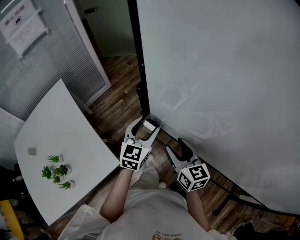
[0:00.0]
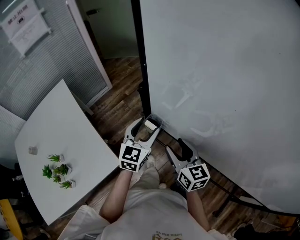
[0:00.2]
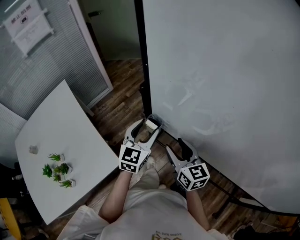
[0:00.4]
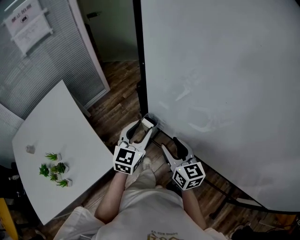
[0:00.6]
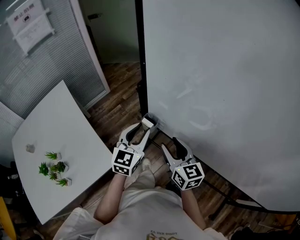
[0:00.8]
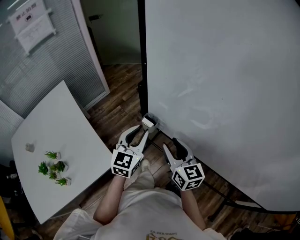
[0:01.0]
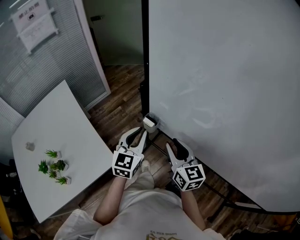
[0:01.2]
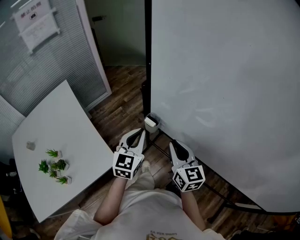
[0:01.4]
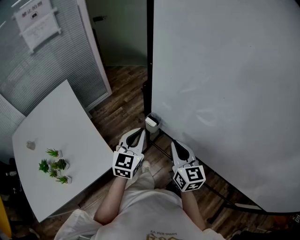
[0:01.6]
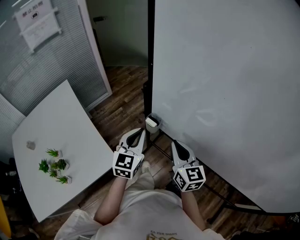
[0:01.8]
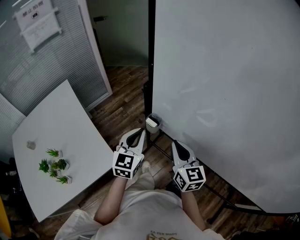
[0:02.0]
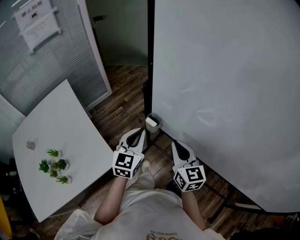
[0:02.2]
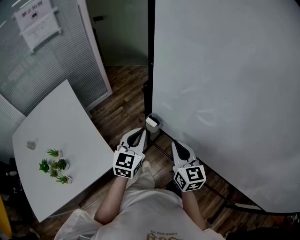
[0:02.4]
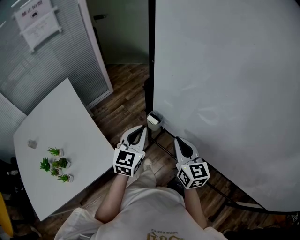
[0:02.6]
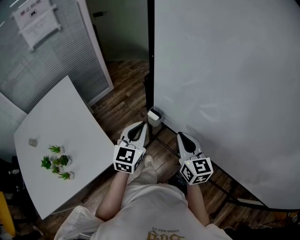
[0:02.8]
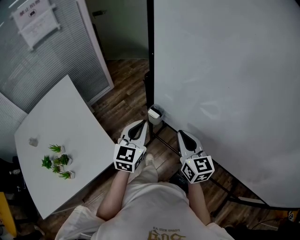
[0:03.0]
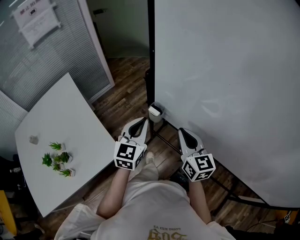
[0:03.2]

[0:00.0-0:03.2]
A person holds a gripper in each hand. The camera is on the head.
0:00.0 to 0:01.6: The left gripper heads backward, covering about 5 cm, and closes; the right gripper changes place by approximately 5 cm, and closes up.
0:01.6 to 0:03.2: The two grippers keep their place.

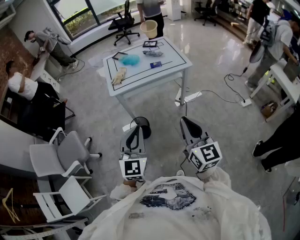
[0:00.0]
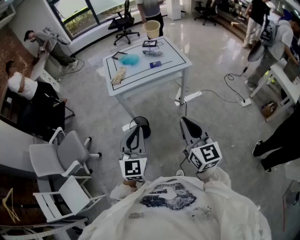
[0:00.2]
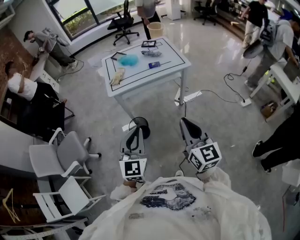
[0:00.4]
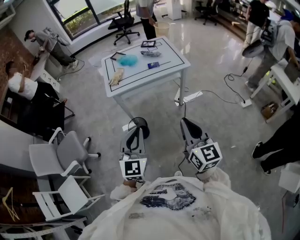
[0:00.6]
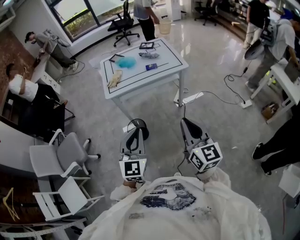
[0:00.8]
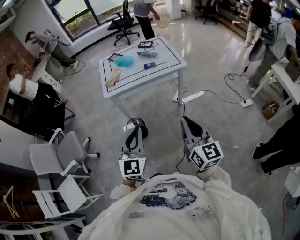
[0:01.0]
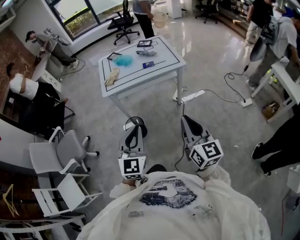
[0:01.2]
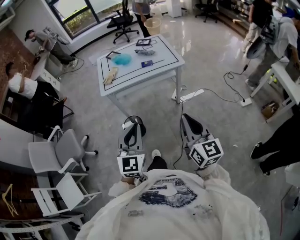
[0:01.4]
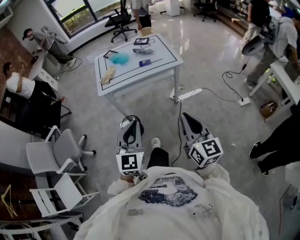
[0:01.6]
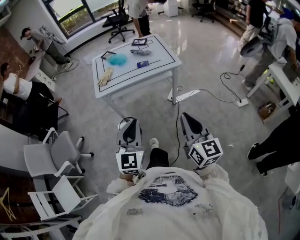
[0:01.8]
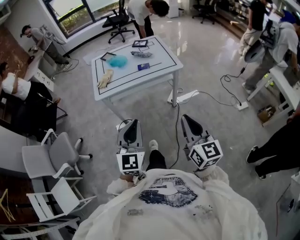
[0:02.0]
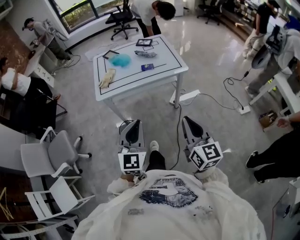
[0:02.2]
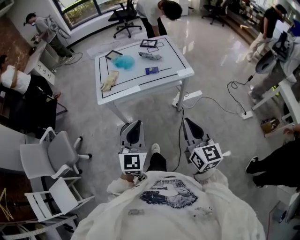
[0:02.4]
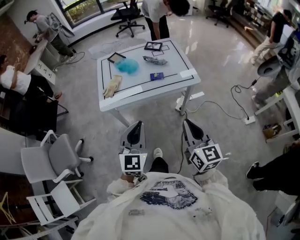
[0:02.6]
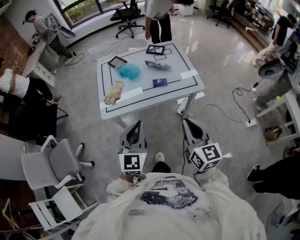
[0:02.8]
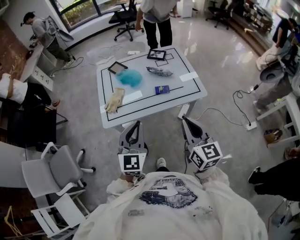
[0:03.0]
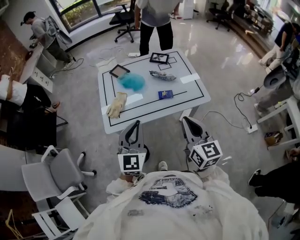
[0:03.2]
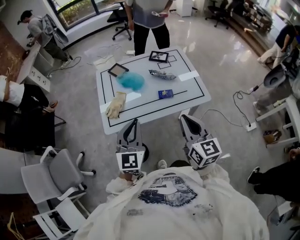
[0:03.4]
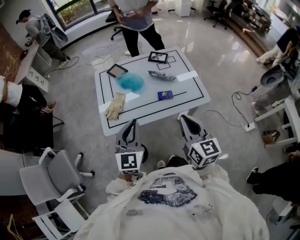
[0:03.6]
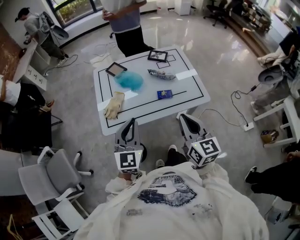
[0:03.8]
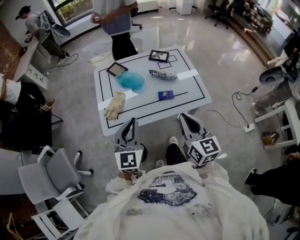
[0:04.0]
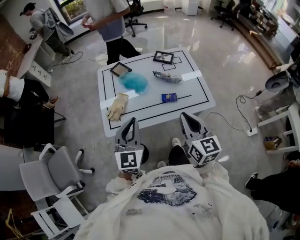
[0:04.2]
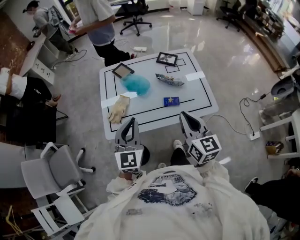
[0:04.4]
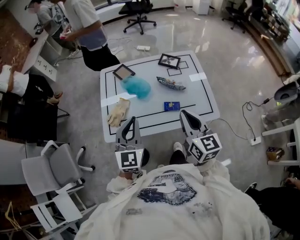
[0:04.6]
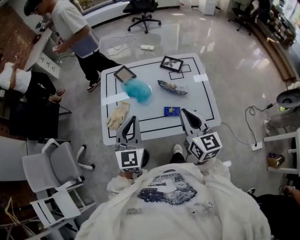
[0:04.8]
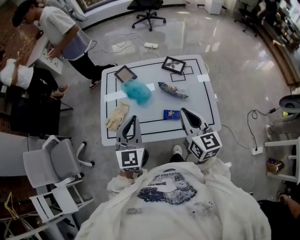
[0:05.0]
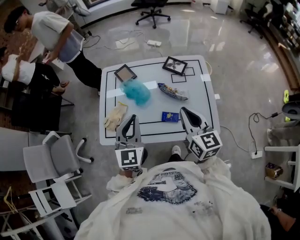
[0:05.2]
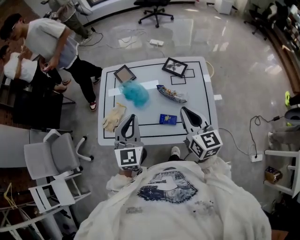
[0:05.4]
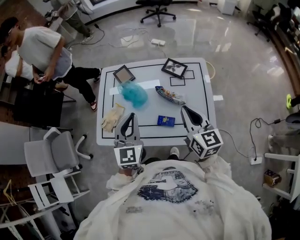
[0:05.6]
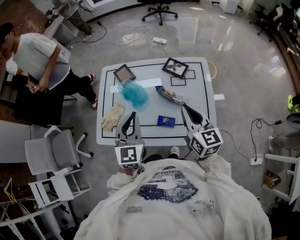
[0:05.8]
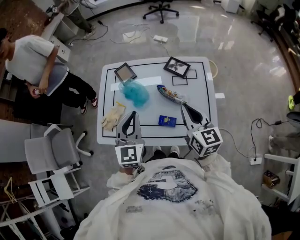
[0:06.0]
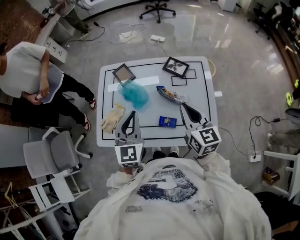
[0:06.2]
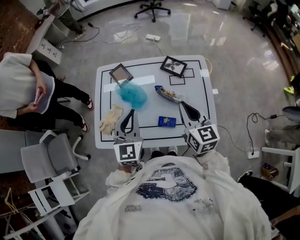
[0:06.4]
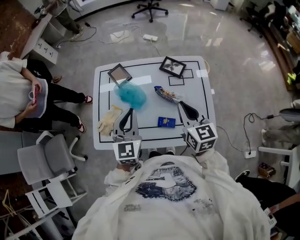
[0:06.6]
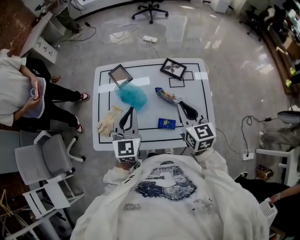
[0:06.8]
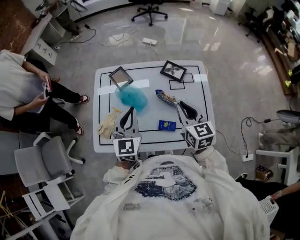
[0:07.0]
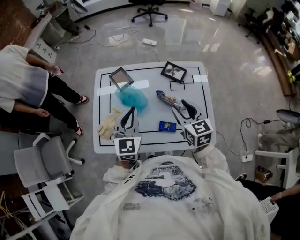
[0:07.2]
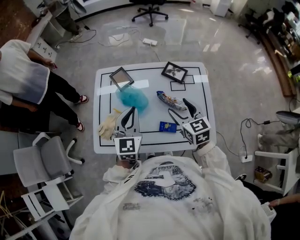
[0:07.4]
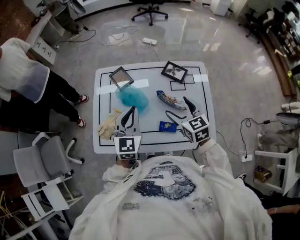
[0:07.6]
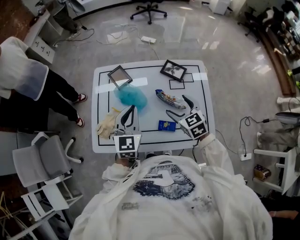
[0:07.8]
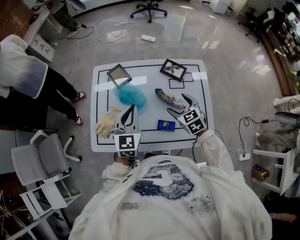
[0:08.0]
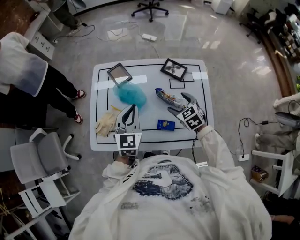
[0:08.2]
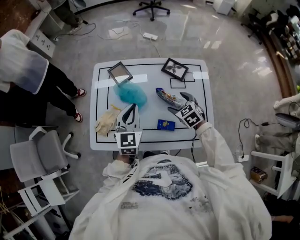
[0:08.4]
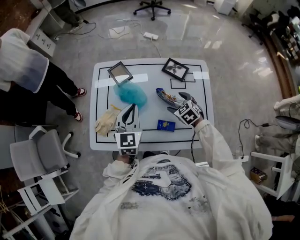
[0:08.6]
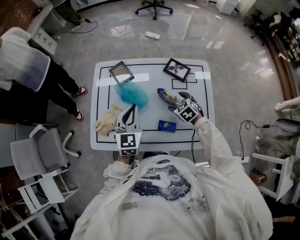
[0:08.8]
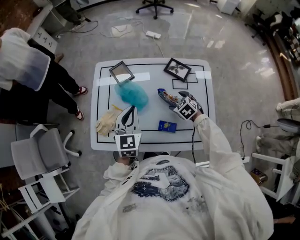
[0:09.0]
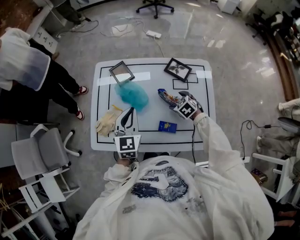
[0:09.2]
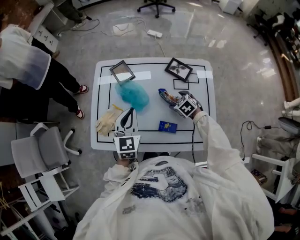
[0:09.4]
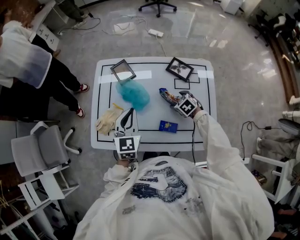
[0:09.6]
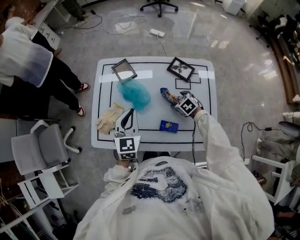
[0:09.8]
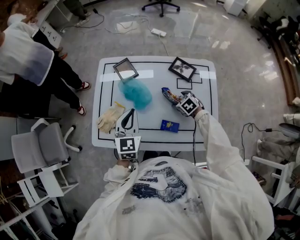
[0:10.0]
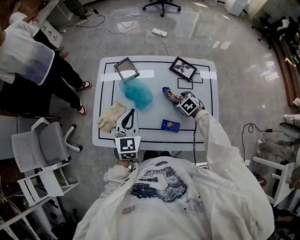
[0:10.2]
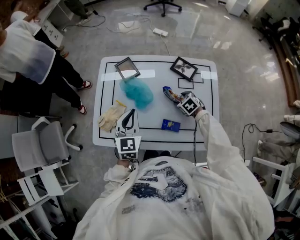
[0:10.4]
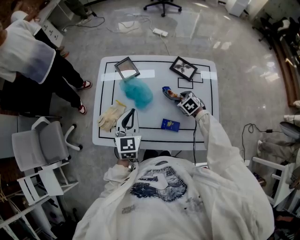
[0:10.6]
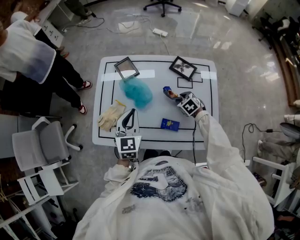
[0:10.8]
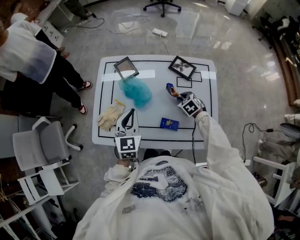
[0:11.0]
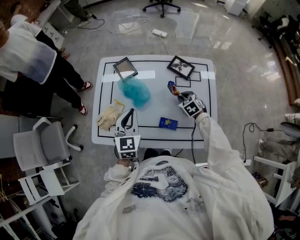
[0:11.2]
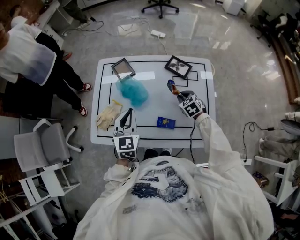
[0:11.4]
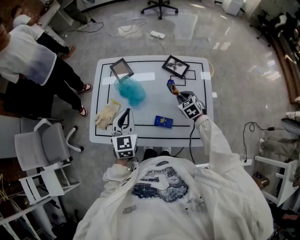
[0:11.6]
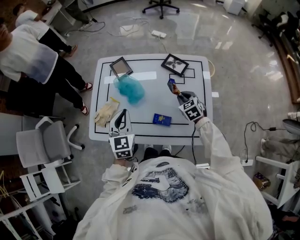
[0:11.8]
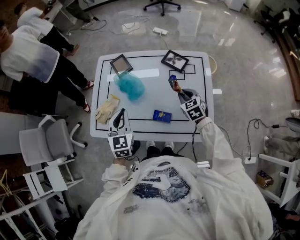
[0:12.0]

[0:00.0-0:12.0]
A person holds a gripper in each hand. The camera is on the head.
0:00.0 to 0:01.6: The two grippers go approximately 10 cm to the right.
0:01.6 to 0:03.0: Both grippers travel together forward, roughly 35 cm.
0:03.0 to 0:04.4: The two grippers go about 15 cm forward.
0:04.4 to 0:06.0: The two grippers go approximately 20 cm forward and to the right.
0:06.0 to 0:07.6: The left gripper heads forward, covering some 5 cm. The right gripper moves downward, forward and to the left, approximately 10 cm, swivels about 20 degrees, and opens its fingers.
0:07.6 to 0:09.0: The right gripper is displaced downward by about 20 cm, and angles its fingers downward, by approximately 30 degrees.
0:09.0 to 0:10.4: There are only small adjustments of the grippers.
0:10.4 to 0:12.0: The left gripper moves backward, some 5 cm; the right gripper travels upward by roughly 10 cm, turns by roughly 30 degrees, and closes up.

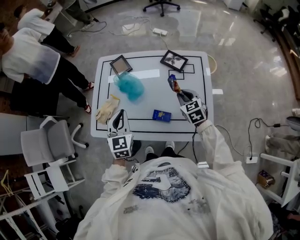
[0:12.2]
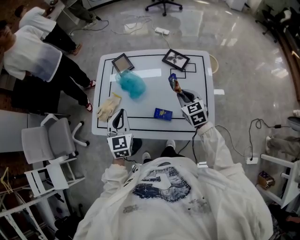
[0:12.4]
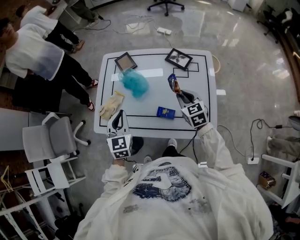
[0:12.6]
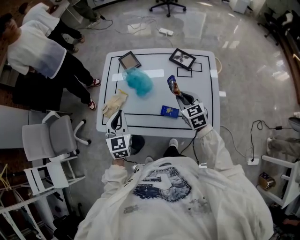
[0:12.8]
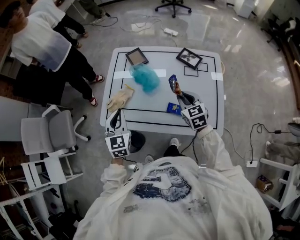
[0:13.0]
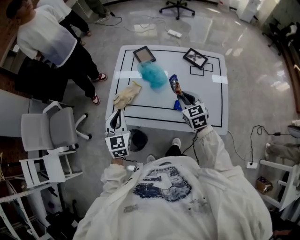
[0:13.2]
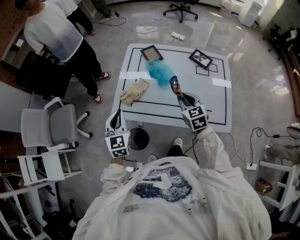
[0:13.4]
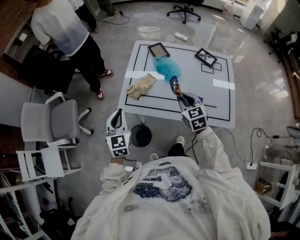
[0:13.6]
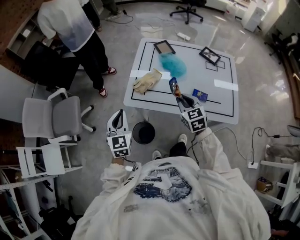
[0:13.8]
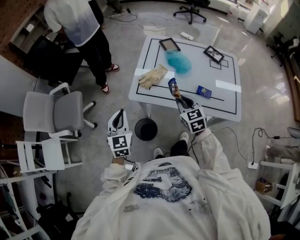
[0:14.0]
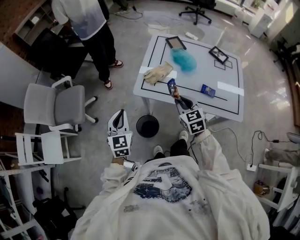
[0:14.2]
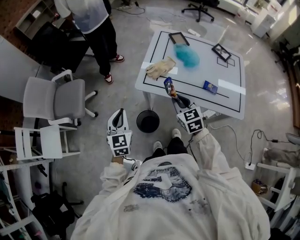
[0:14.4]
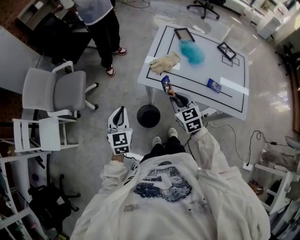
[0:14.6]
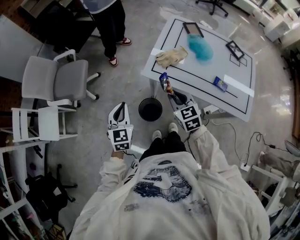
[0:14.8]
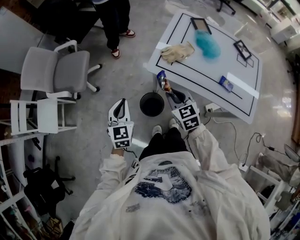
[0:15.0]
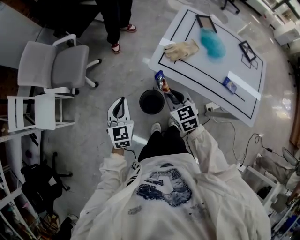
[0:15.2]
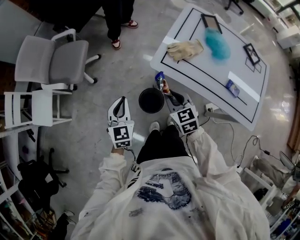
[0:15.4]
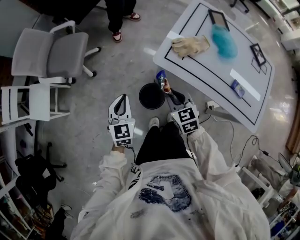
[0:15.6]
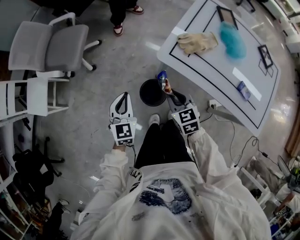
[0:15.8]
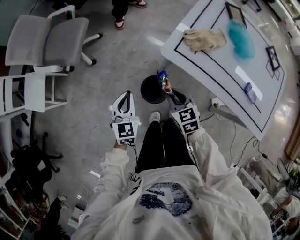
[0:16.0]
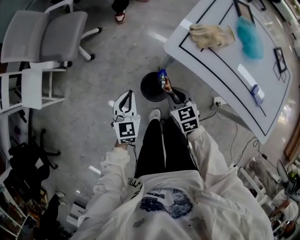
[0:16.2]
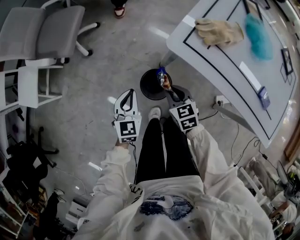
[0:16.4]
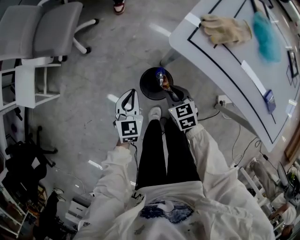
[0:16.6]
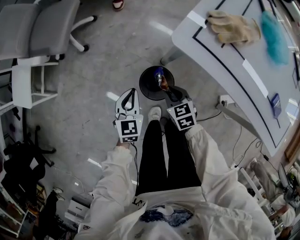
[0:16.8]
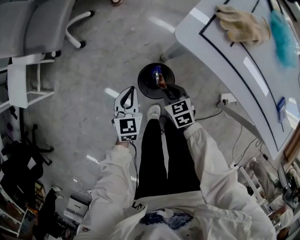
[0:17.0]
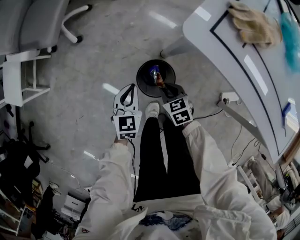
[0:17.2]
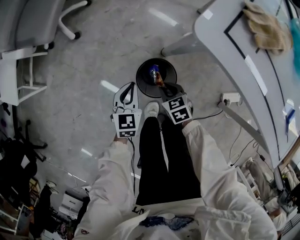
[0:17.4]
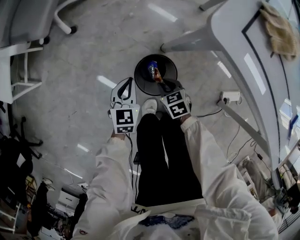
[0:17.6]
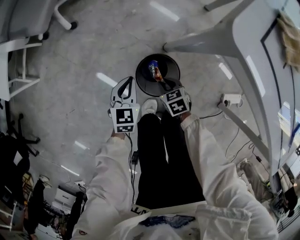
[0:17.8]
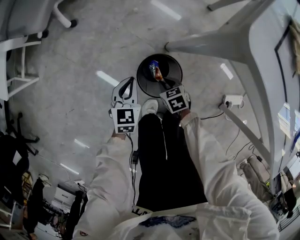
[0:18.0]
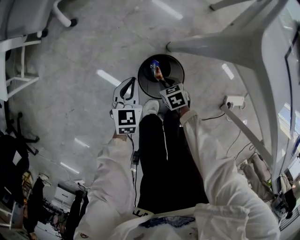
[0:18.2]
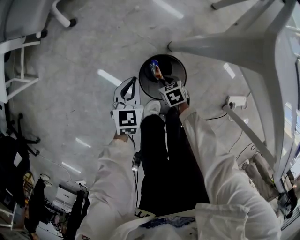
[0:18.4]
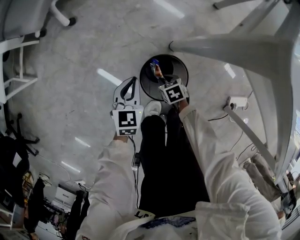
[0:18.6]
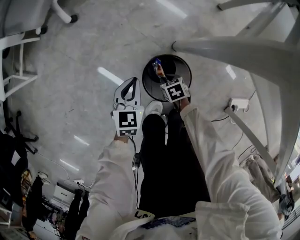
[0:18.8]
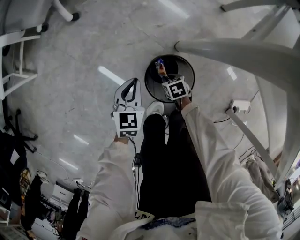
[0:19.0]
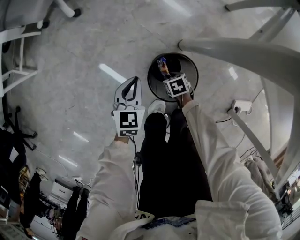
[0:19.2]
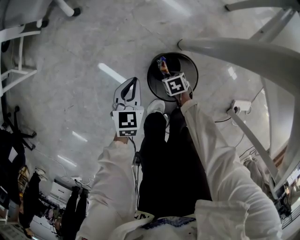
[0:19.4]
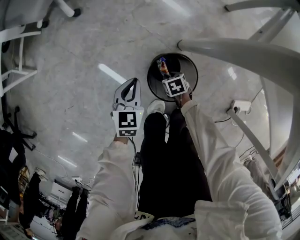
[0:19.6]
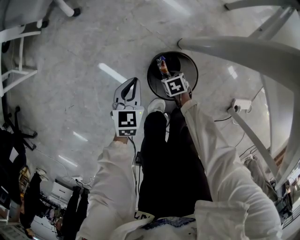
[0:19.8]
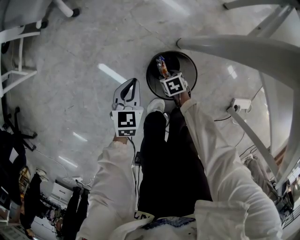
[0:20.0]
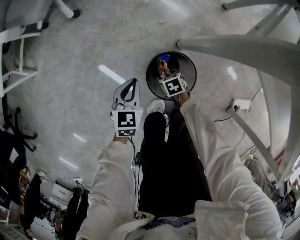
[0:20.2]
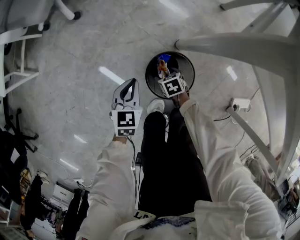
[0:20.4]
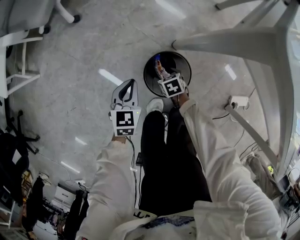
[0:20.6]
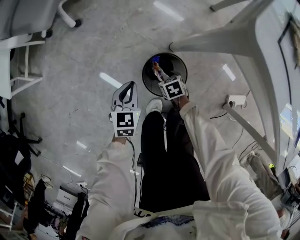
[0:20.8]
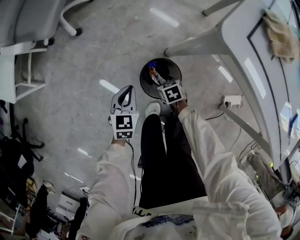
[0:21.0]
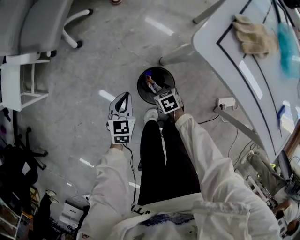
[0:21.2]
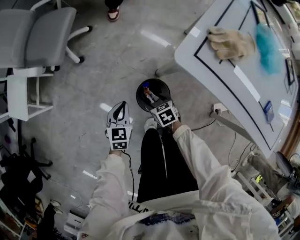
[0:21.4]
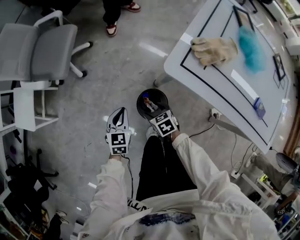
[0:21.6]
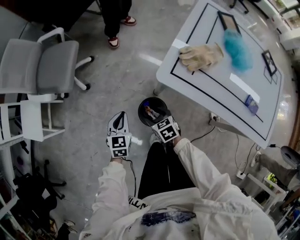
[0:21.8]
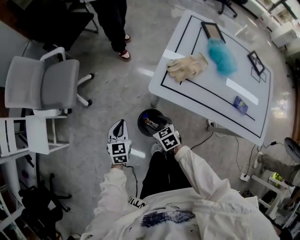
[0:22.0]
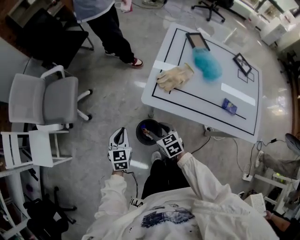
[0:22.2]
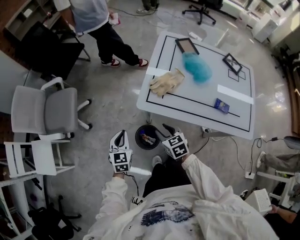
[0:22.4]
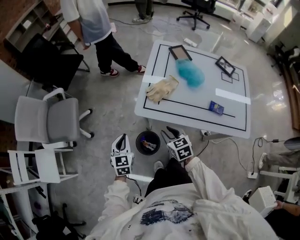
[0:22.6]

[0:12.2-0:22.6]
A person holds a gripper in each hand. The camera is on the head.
0:12.2 to 0:13.6: Both grippers move to the left, some 25 cm.
0:13.6 to 0:15.2: The left gripper moves to the left, downward and backward, some 25 cm, while the right gripper is displaced to the left by about 30 cm, and turns by roughly 20 degrees.
0:15.2 to 0:16.6: The two grippers go about 30 cm downward.
0:16.6 to 0:18.2: The two grippers go roughly 25 cm downward. The right gripper turns by approximately 20 degrees.
0:18.2 to 0:19.6: The right gripper shifts approximately 10 cm downward; the left gripper ends up some 5 cm from where it was.
0:19.6 to 0:21.2: Both grippers move upward, approximately 20 cm. The right gripper opens up.
0:21.2 to 0:22.6: The grippers both shift upward by about 40 cm. The left gripper swivels some 20 degrees, while the right gripper turns by about 40 degrees, and closes.
